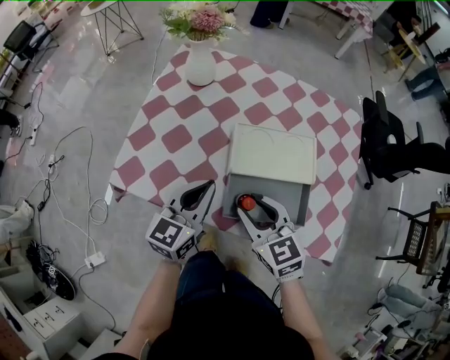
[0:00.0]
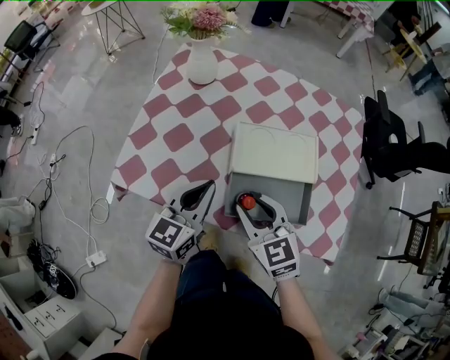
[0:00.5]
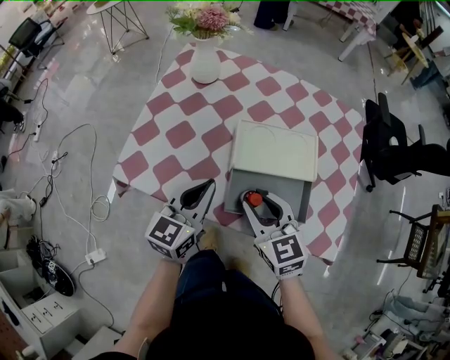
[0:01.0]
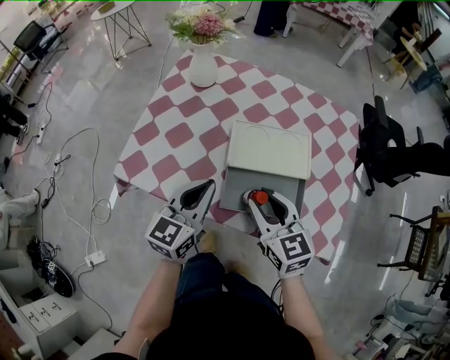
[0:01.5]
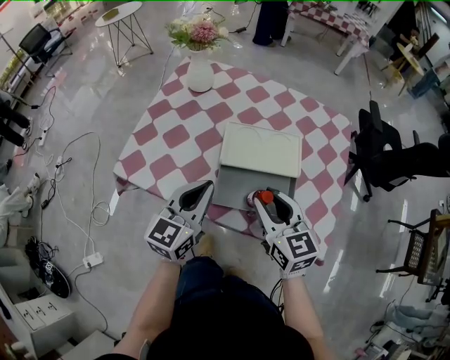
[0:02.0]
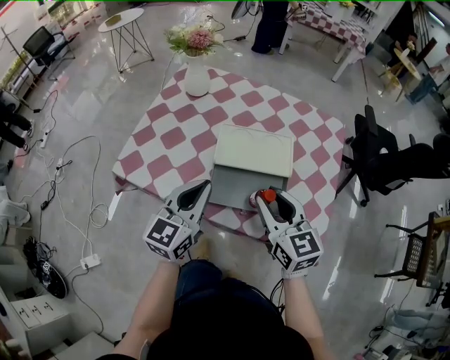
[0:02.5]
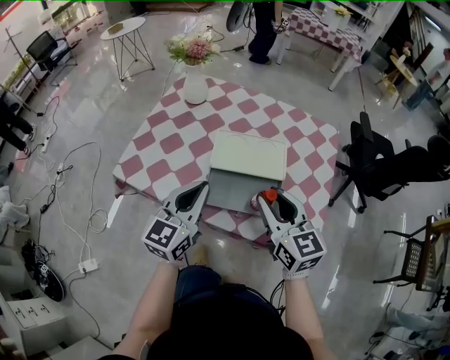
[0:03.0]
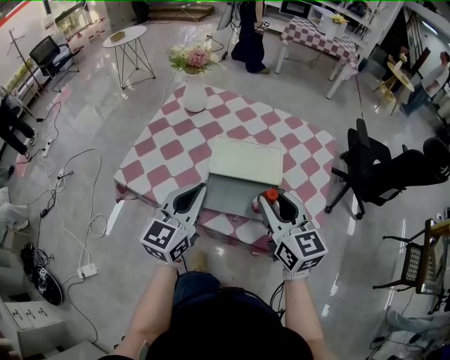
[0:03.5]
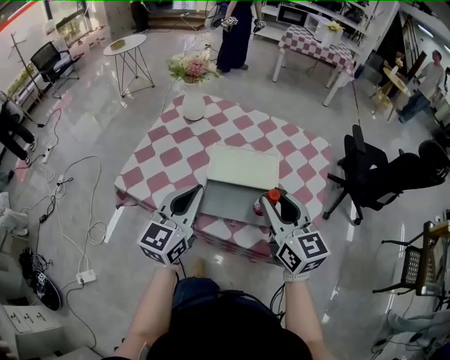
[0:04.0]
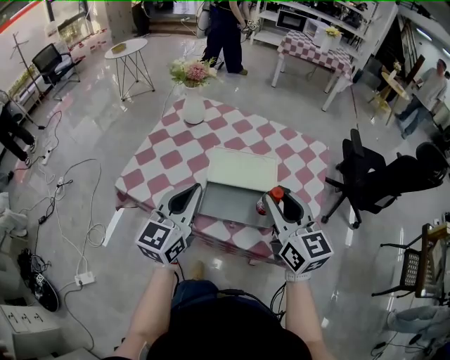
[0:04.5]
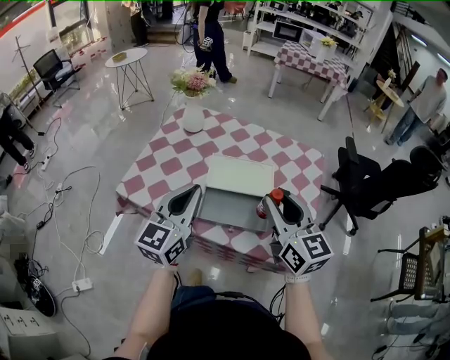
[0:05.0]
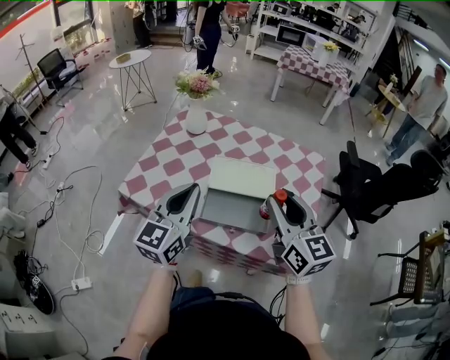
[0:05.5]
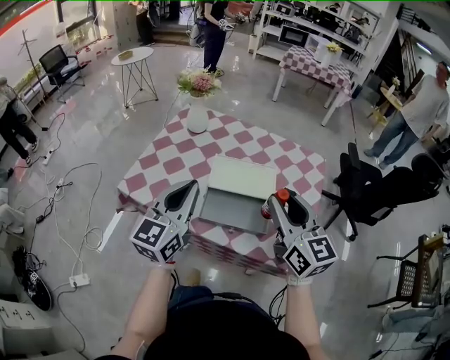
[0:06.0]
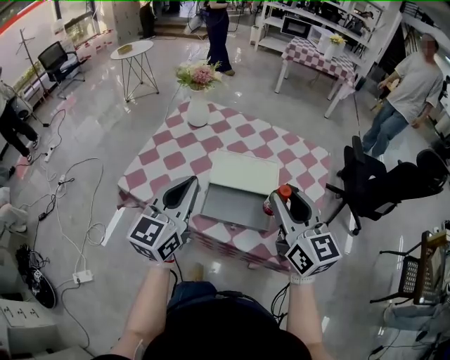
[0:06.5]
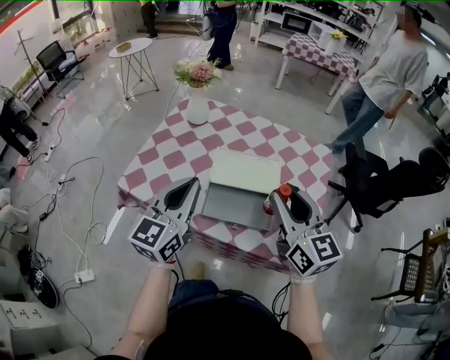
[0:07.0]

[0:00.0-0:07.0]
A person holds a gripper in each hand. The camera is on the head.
0:00.0 to 0:02.0: The left gripper shifts about 5 cm backward; the right gripper goes some 10 cm to the right and upward.
0:02.0 to 0:03.5: The right gripper goes roughly 10 cm upward and to the right. Meanwhile the left gripper travels upward by approximately 5 cm.
0:03.5 to 0:05.0: The two grippers go approximately 5 cm upward.
0:05.0 to 0:07.0: The grippers make only small movements.

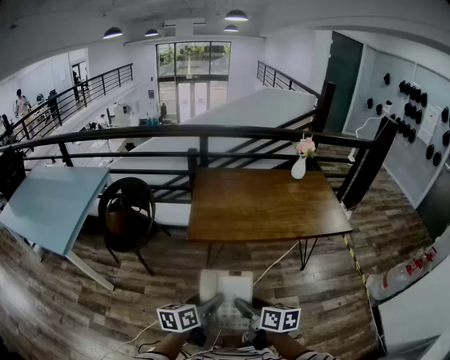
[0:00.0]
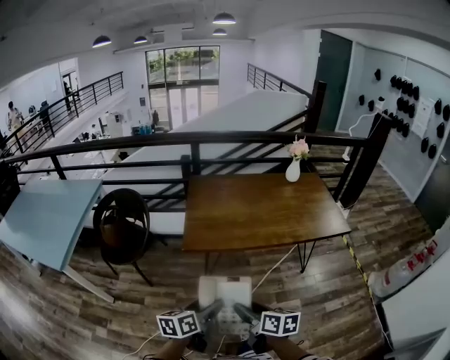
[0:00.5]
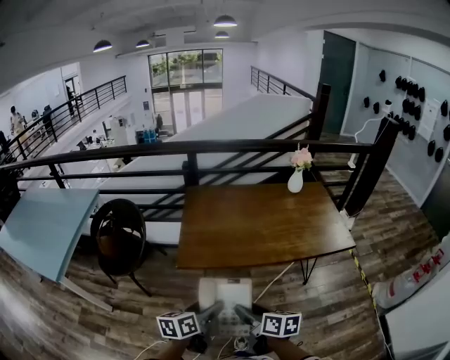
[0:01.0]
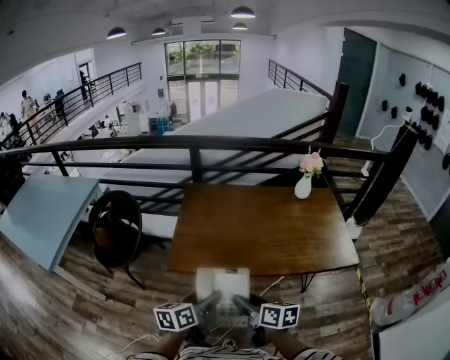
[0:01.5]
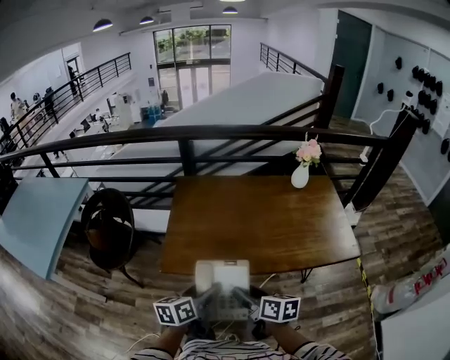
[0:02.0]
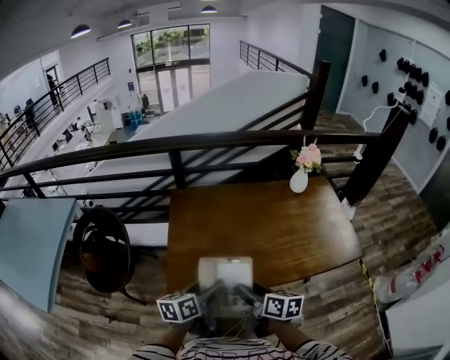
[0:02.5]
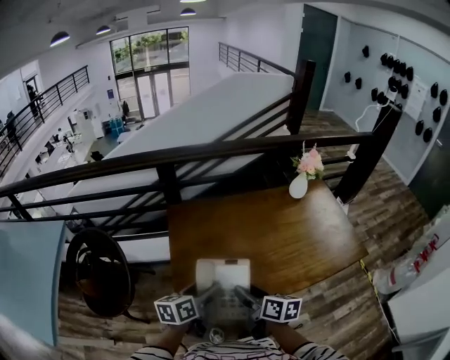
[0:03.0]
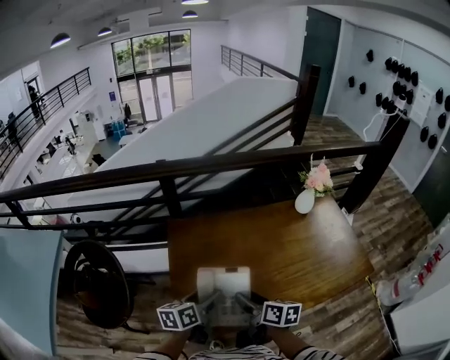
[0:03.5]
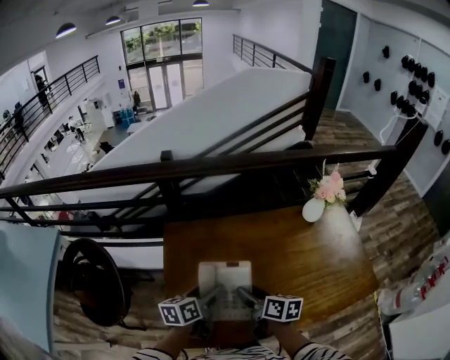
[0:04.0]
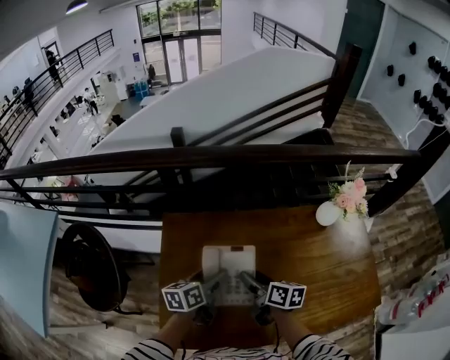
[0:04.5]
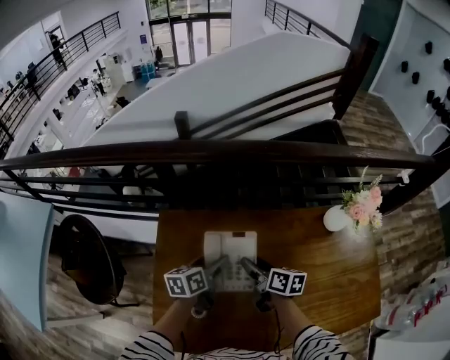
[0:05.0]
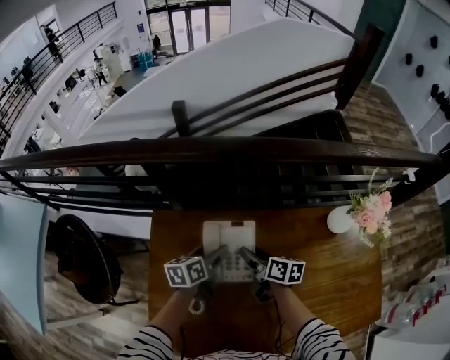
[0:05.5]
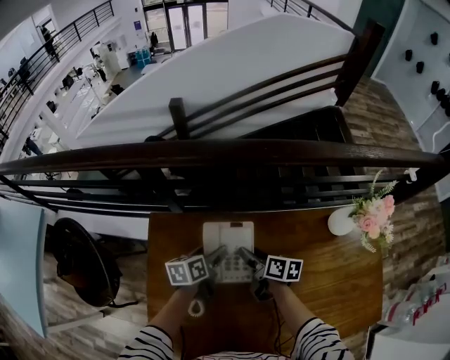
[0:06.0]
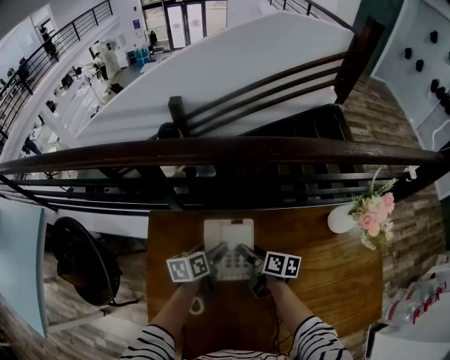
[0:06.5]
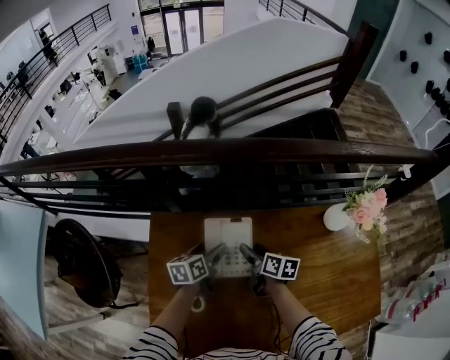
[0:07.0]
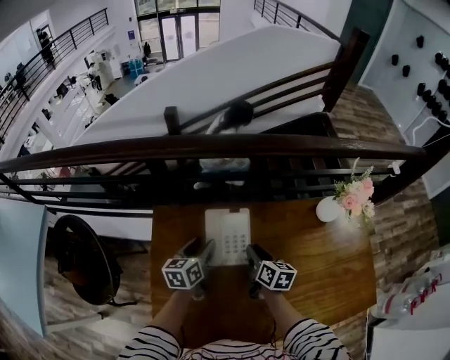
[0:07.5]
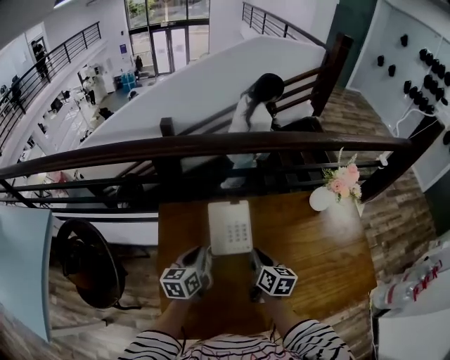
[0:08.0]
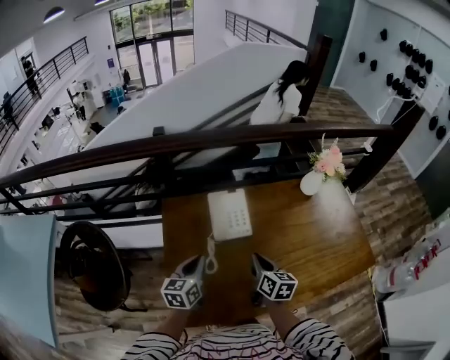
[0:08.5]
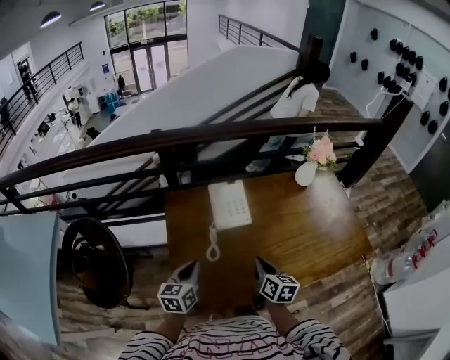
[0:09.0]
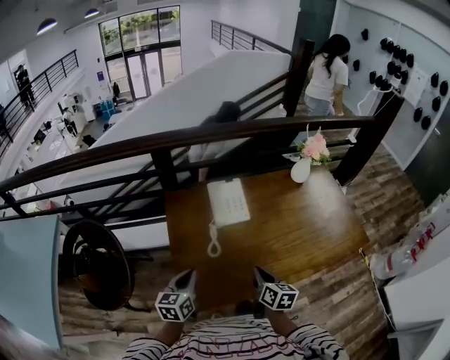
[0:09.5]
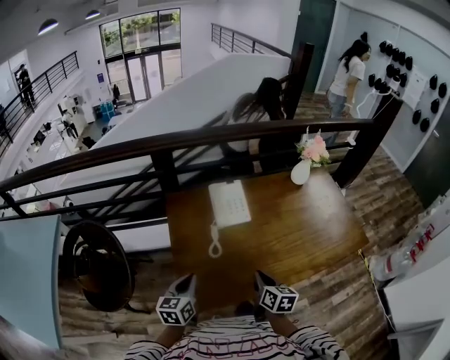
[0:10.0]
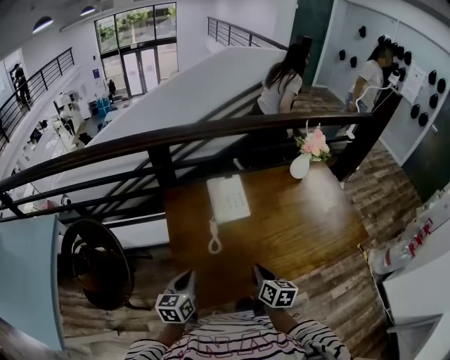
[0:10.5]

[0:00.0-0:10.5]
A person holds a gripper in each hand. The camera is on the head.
0:00.0 to 0:02.0: Both grippers travel together forward and to the right, some 35 cm.
0:02.0 to 0:04.0: The pair of grippers is taken forward, roughly 40 cm.
0:04.0 to 0:06.5: Both grippers move forward and downward, some 35 cm.
0:06.5 to 0:08.5: The two grippers go approximately 35 cm backward and upward. The left gripper changes its angle by roughly 30 degrees, and closes. Meanwhile the right gripper changes its angle by about 30 degrees, and closes its fingers.
0:08.5 to 0:10.5: Both grippers move backward, some 15 cm.

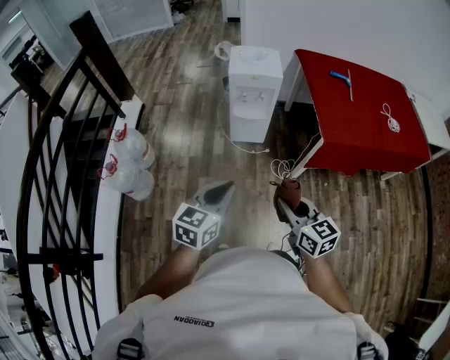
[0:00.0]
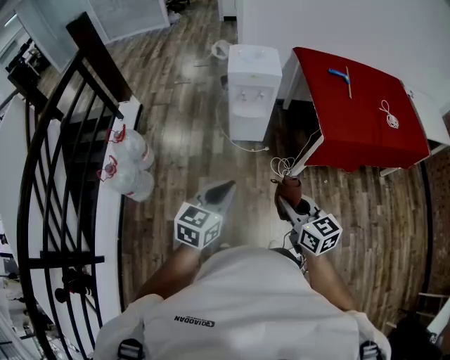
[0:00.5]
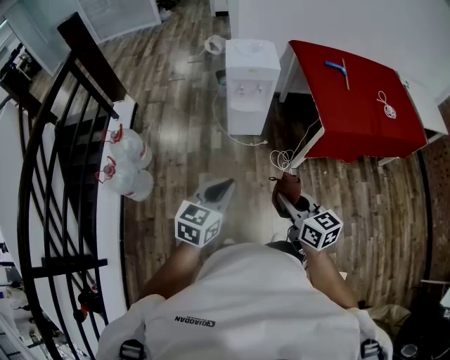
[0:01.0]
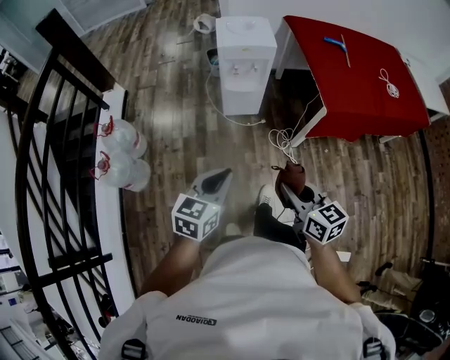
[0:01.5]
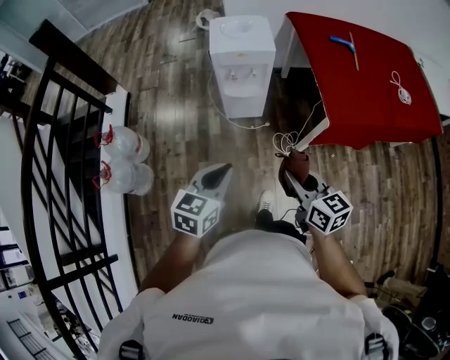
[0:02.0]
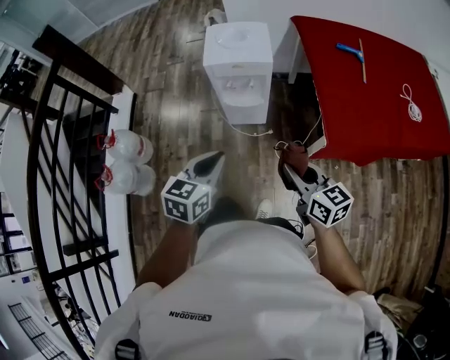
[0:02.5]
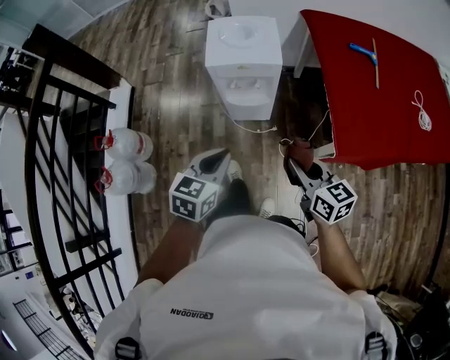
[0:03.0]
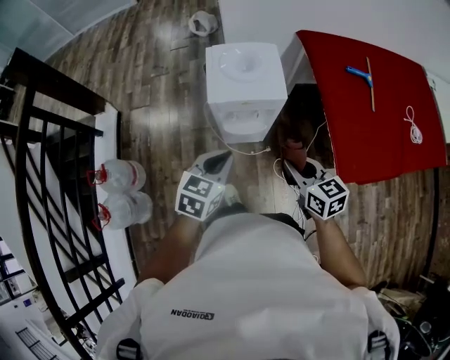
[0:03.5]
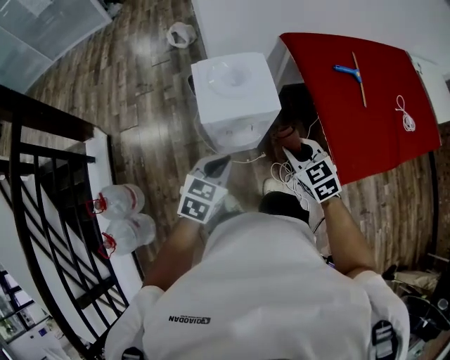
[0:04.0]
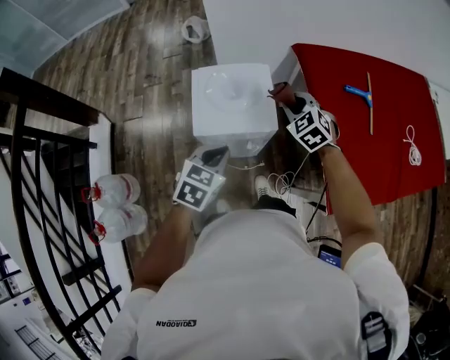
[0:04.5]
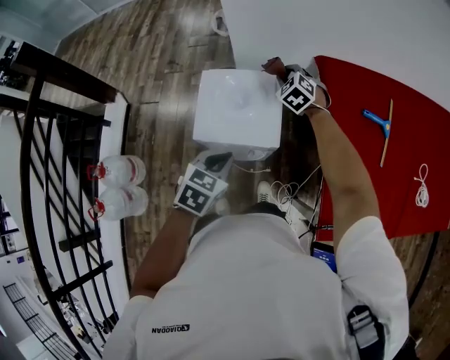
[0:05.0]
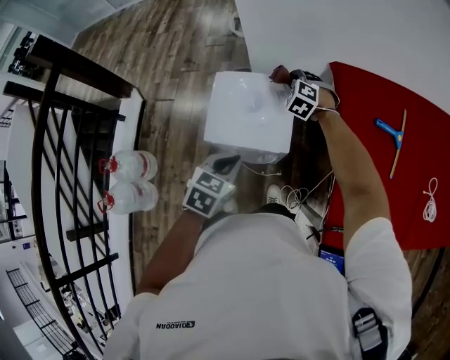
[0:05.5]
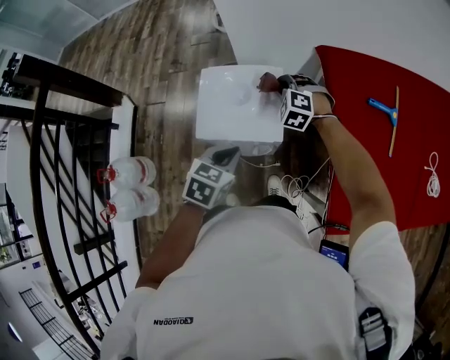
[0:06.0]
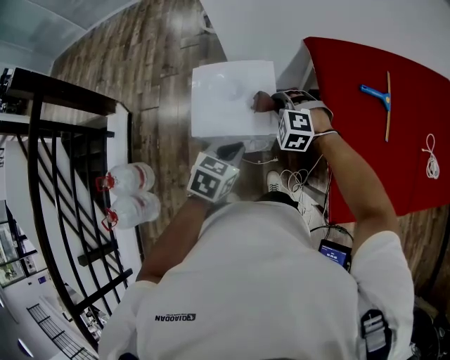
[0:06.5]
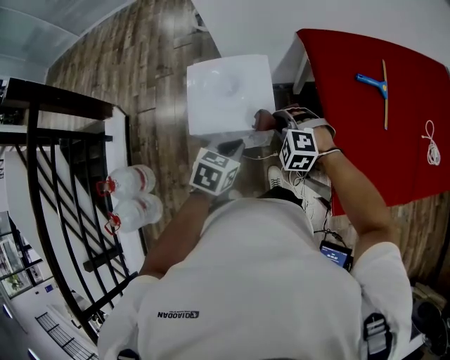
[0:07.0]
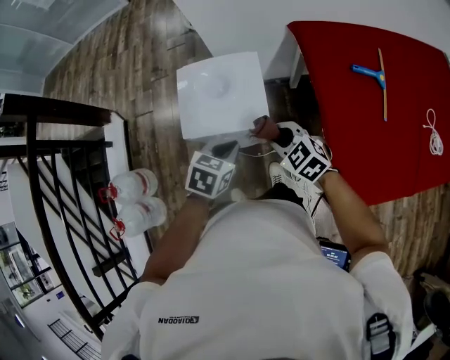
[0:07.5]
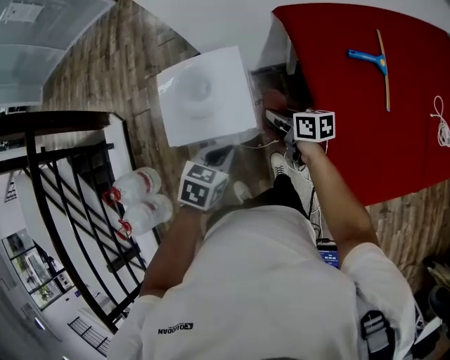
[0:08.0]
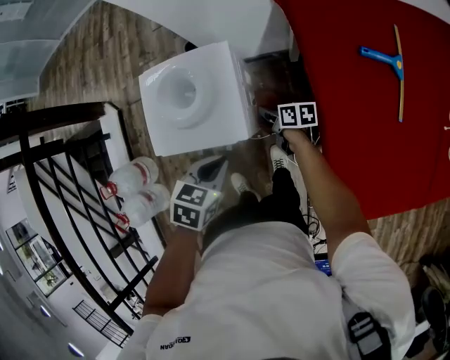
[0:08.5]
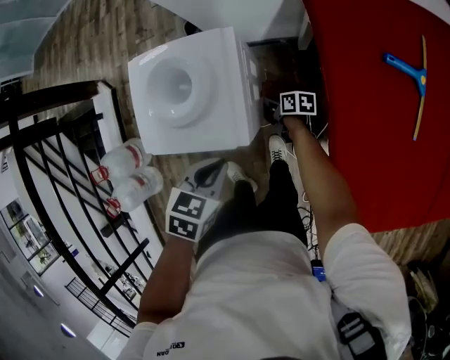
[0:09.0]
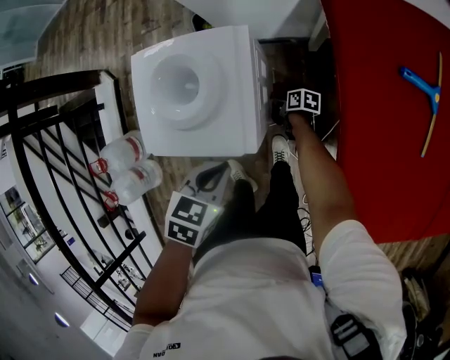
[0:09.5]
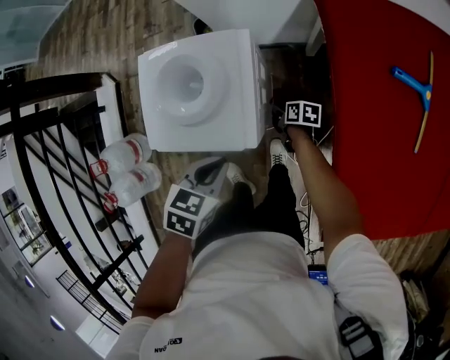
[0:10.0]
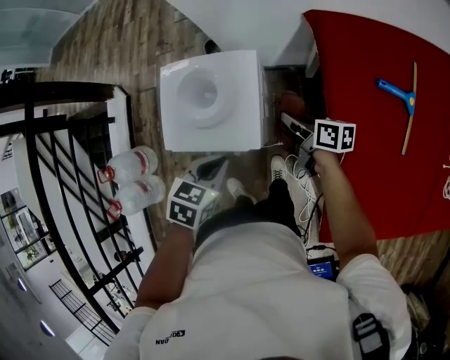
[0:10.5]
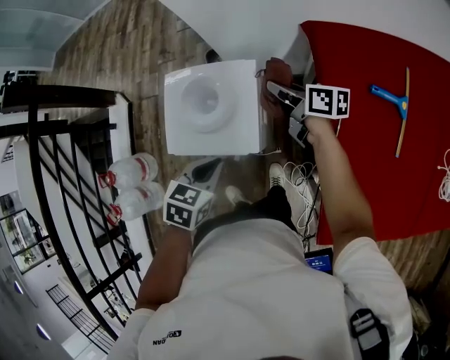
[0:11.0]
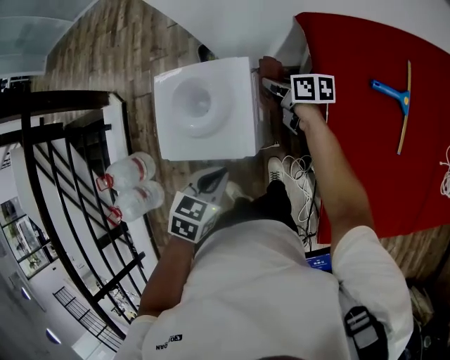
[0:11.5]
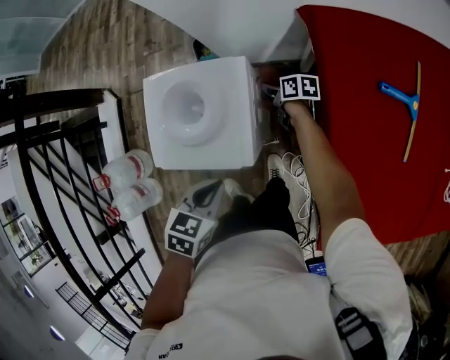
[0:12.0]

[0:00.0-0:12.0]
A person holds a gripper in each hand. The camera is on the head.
0:00.0 to 0:02.0: The grippers both shift forward by roughly 10 cm.
0:02.0 to 0:04.0: Both grippers travel together forward, about 35 cm. The right gripper turns by some 40 degrees.
0:04.0 to 0:06.0: The right gripper moves forward, approximately 30 cm, and rotates around the line of its fingers by approximately 50 degrees, counterclockwise from behind; the left gripper heads forward and to the right, covering some 15 cm.
0:06.0 to 0:08.0: The left gripper is displaced downward and to the right by roughly 10 cm; the right gripper is displaced backward, to the right and downward by approximately 15 cm, and twists approximately 100 degrees clockwise, seen from behind.
0:08.0 to 0:10.0: The right gripper travels downward by approximately 25 cm, and changes its angle by roughly 30 degrees.
0:10.0 to 0:12.0: The right gripper shifts about 15 cm forward, and goes upward and returns, about 30 cm each way.
